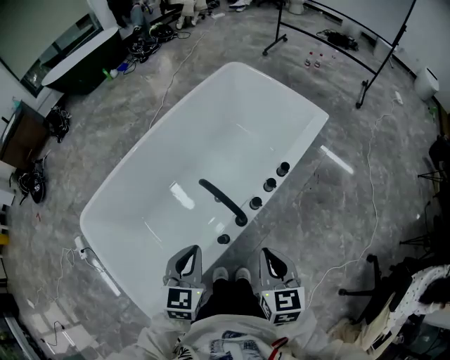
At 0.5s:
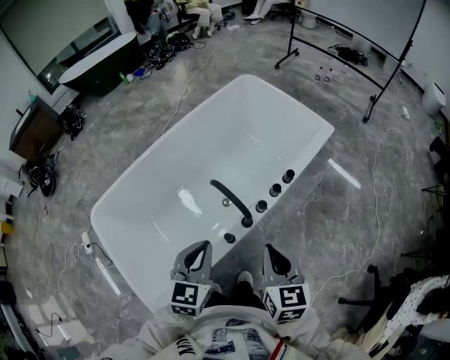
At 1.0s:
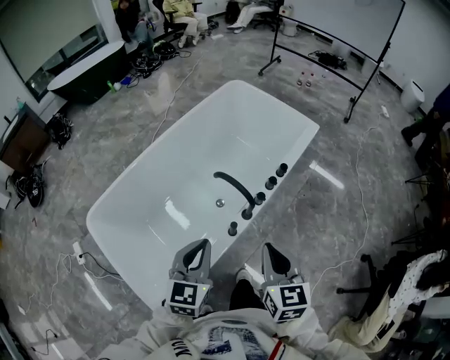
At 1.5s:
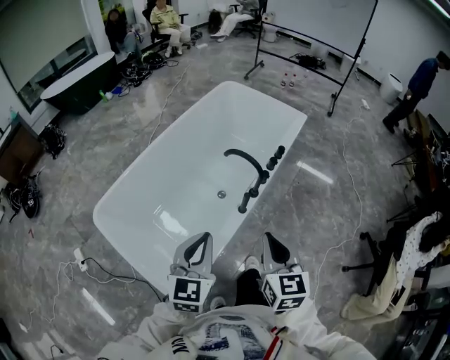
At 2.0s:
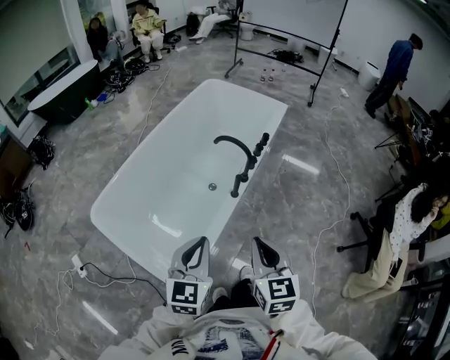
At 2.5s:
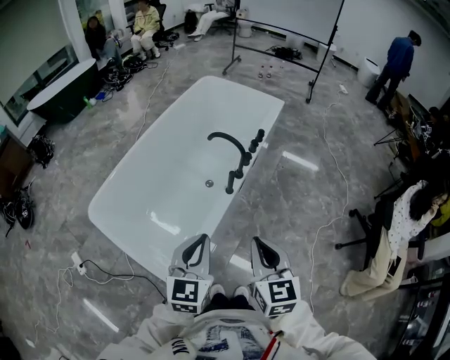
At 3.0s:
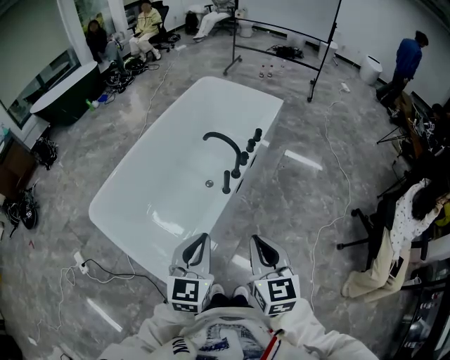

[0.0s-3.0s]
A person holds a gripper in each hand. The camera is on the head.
0.0s to 1.5s: The left gripper goes some 20 cm backward, upward and to the left, while the right gripper is displaced backward, to the left and upward by roughly 25 cm.
1.5s to 3.0s: The left gripper moves backward and to the right, about 10 cm; the right gripper is displaced backward by about 10 cm.

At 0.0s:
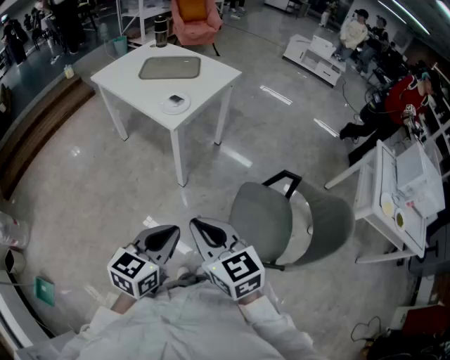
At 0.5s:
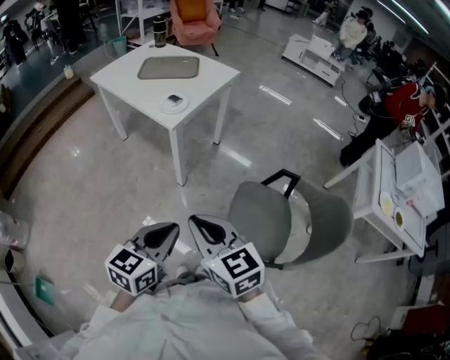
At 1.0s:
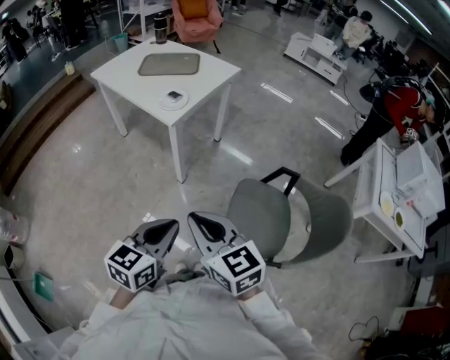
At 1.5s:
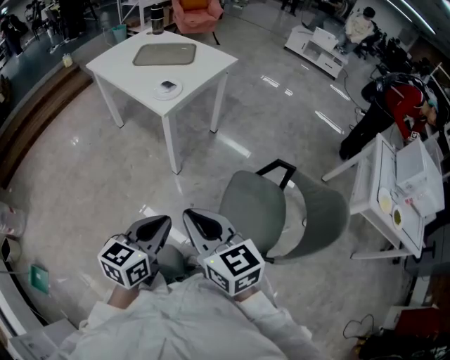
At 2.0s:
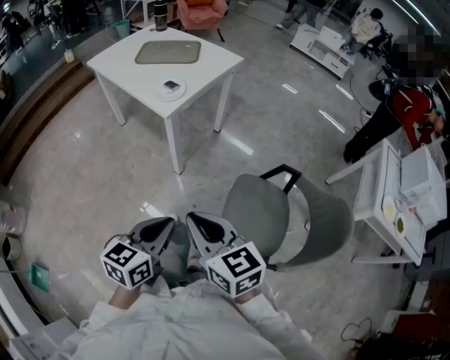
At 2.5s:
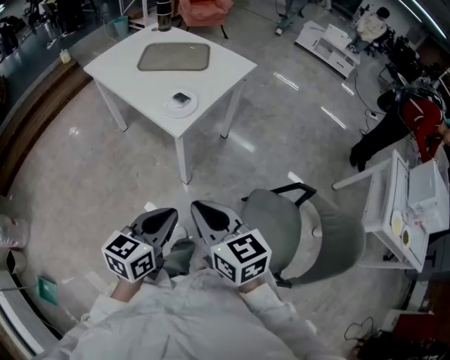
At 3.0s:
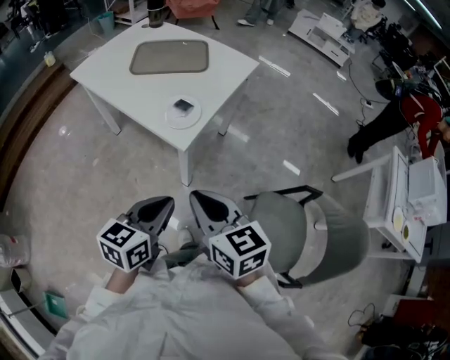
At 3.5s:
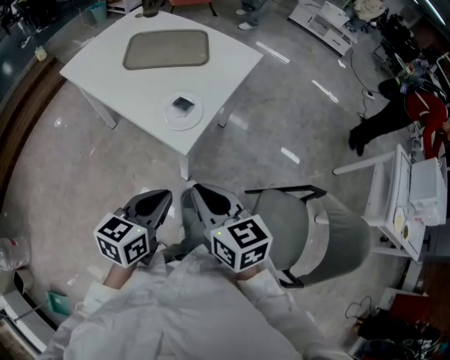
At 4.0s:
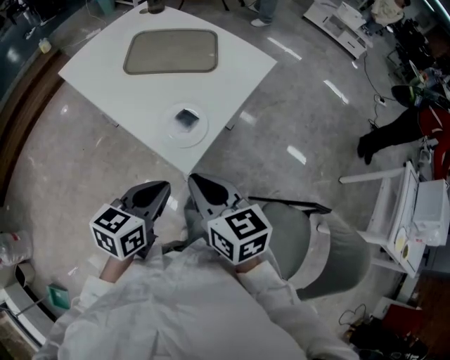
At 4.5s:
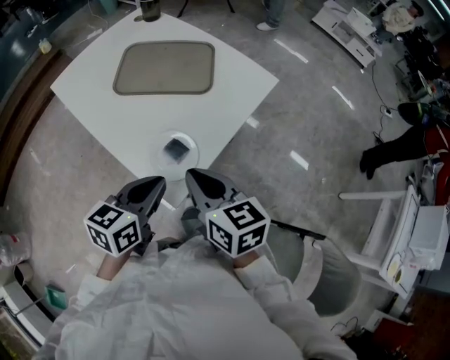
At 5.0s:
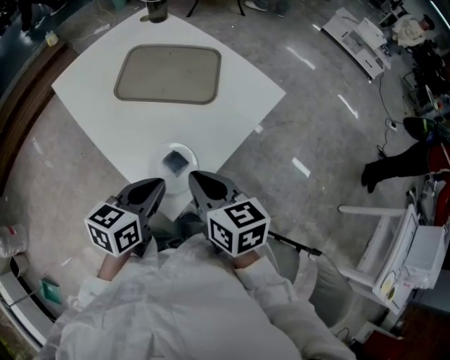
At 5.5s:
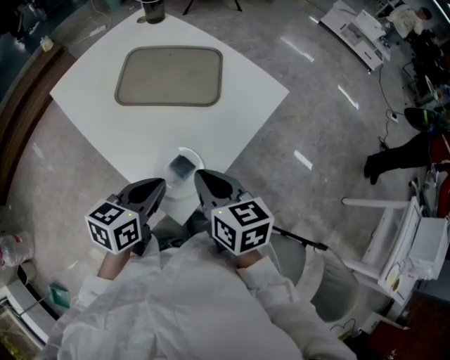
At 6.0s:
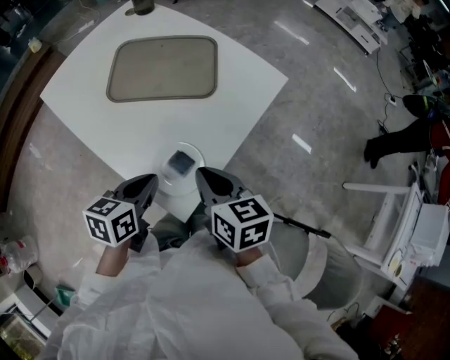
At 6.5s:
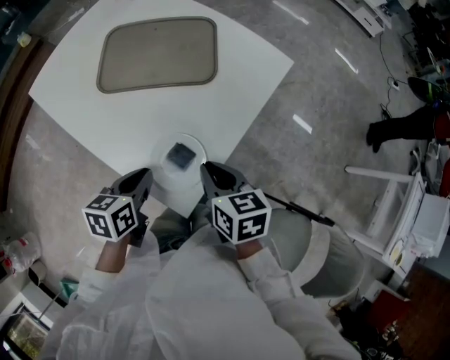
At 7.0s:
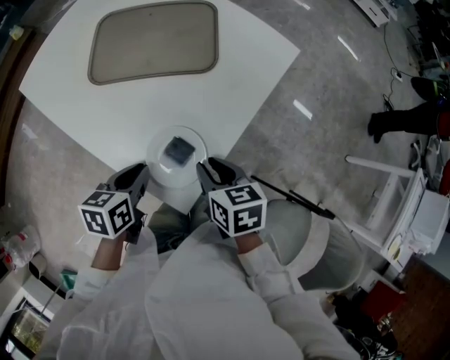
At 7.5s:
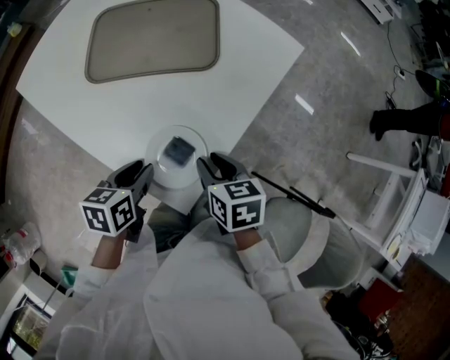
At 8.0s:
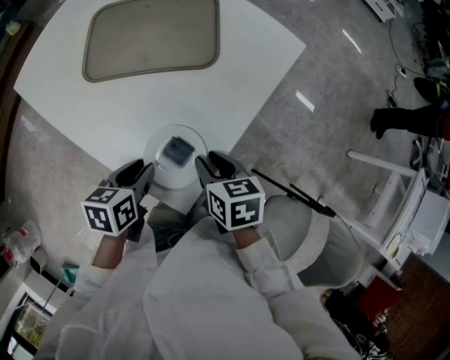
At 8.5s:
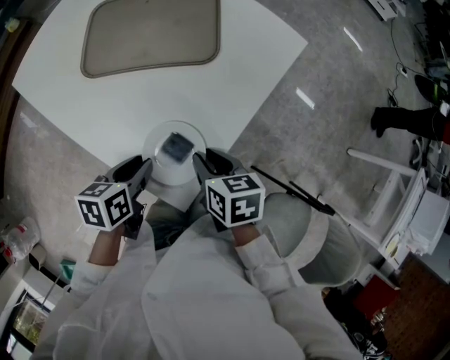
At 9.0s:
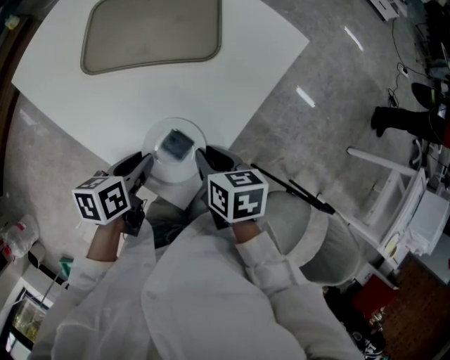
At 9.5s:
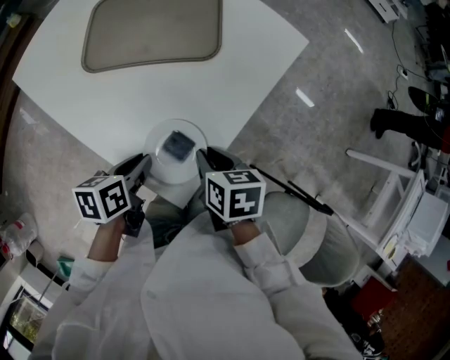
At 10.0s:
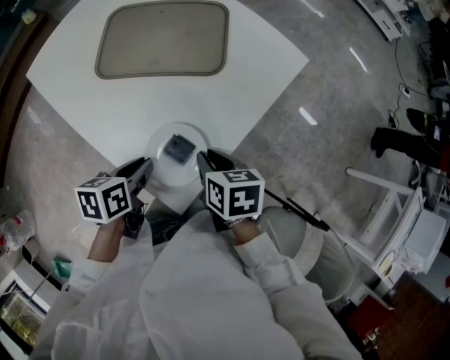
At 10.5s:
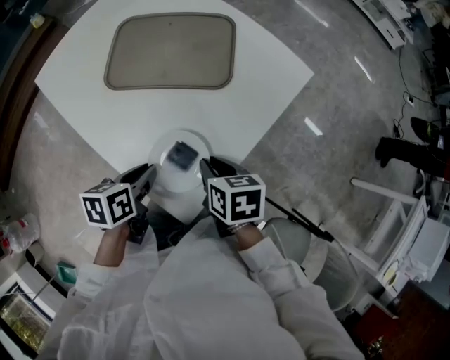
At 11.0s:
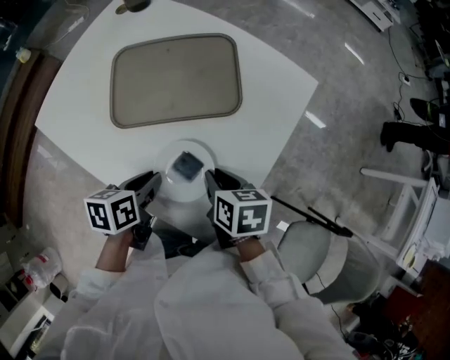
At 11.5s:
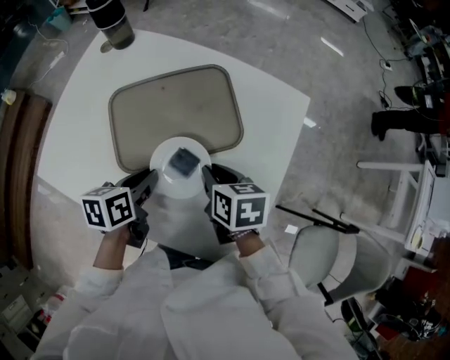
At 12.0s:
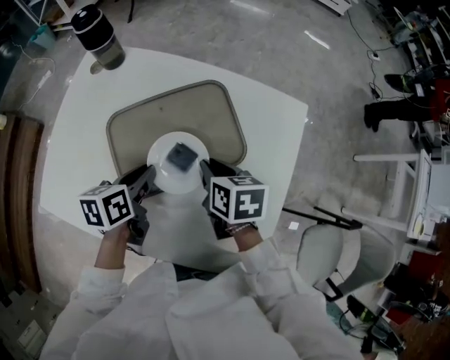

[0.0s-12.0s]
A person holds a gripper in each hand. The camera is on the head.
0.0s to 2.0s: There are only small adjustments of the grippers.
2.0s to 4.0s: Both grippers are carried forward, about 40 cm.
4.0s to 6.0s: Both grippers move forward, some 20 cm.
6.0s to 8.0s: Both grippers move downward, approximately 10 cm. The right gripper opens its fingers. The left gripper opens.
8.0s to 10.0s: The grippers make only small movements.
10.0s to 12.0s: The two grippers go some 30 cm forward and to the left. The right gripper rotates roughly 20 degrees.

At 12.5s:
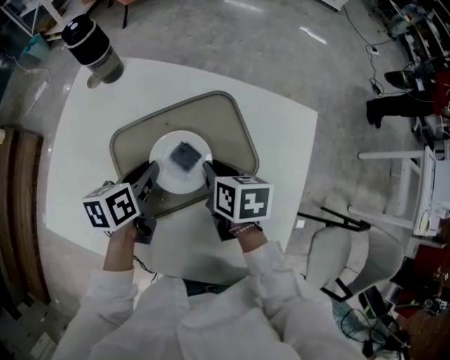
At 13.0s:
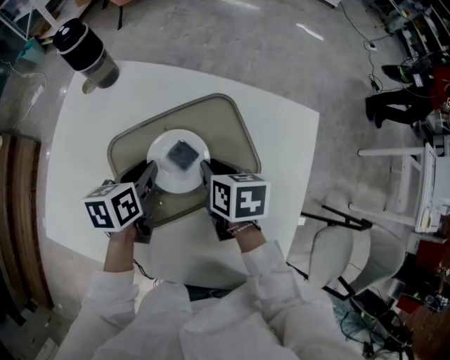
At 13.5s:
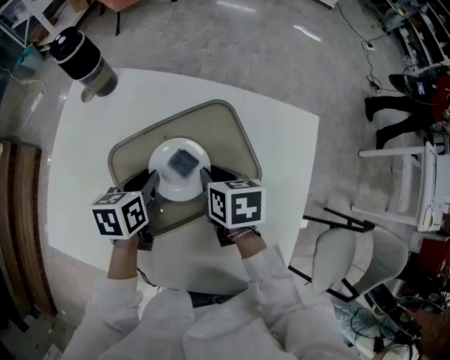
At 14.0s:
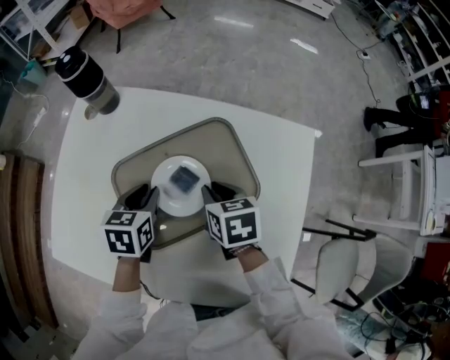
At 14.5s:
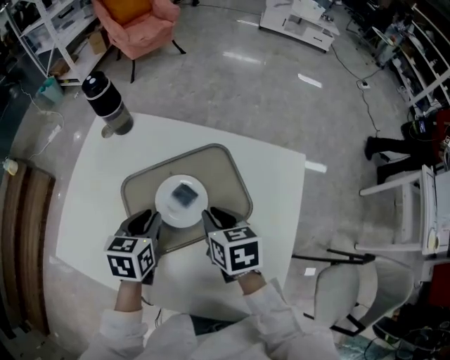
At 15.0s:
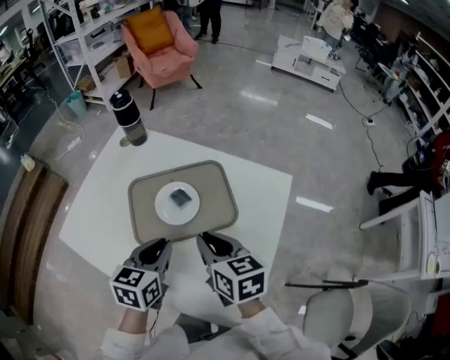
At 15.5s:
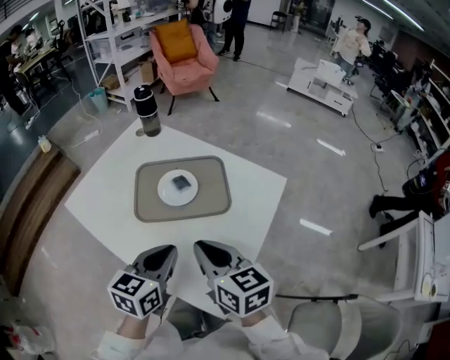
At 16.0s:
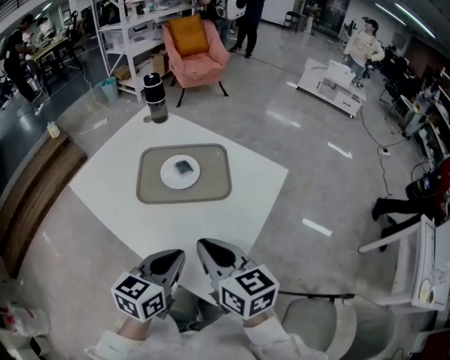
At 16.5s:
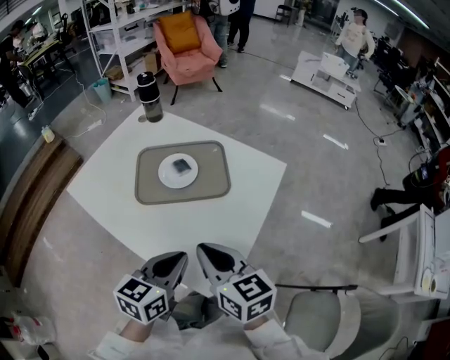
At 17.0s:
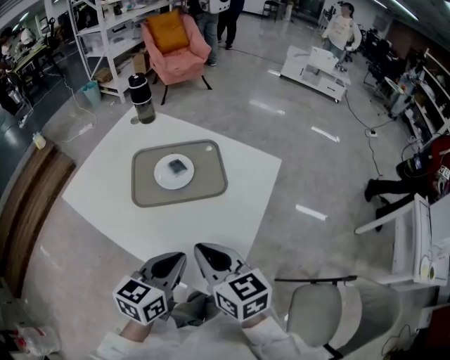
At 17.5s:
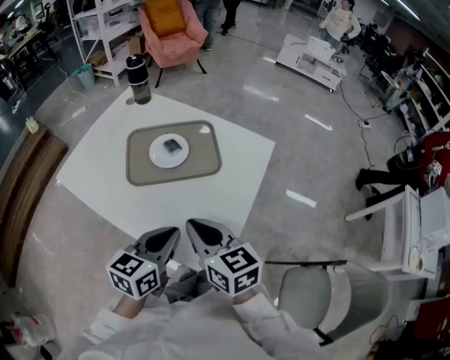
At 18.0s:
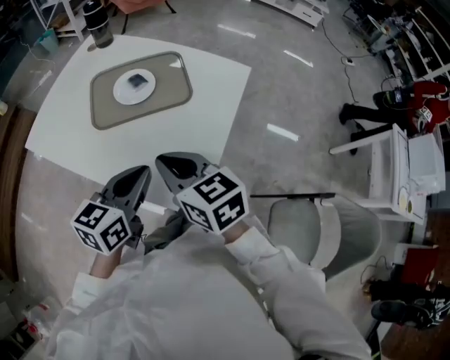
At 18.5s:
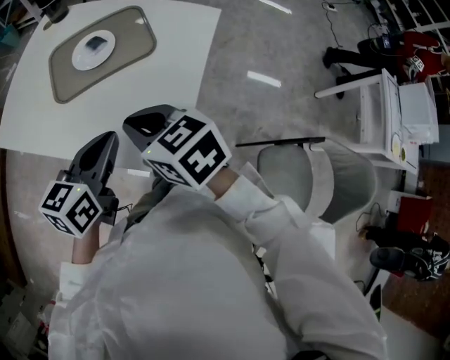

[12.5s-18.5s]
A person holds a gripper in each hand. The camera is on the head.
12.5s to 14.5s: The left gripper turns by some 30 degrees.
14.5s to 16.5s: The right gripper heads backward and upward, covering approximately 30 cm, and swivels some 30 degrees, while the left gripper shifts roughly 35 cm backward and to the right, and rotates some 20 degrees.
16.5s to 18.5s: There are only small adjustments of the grippers.

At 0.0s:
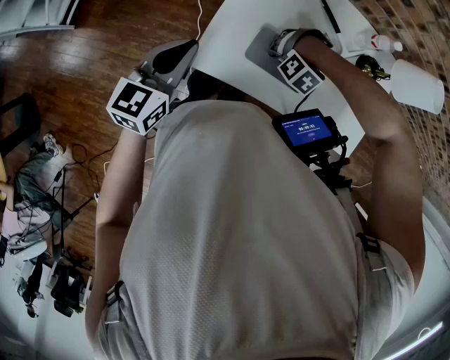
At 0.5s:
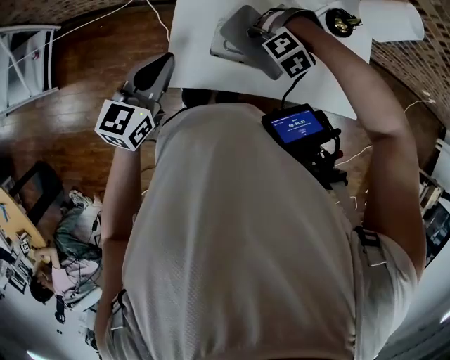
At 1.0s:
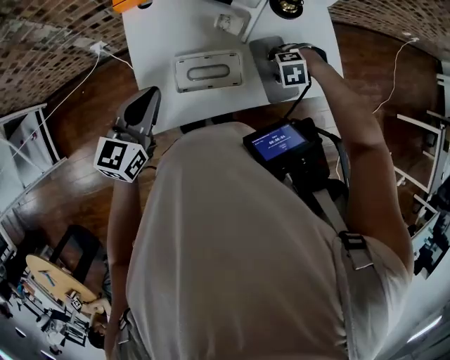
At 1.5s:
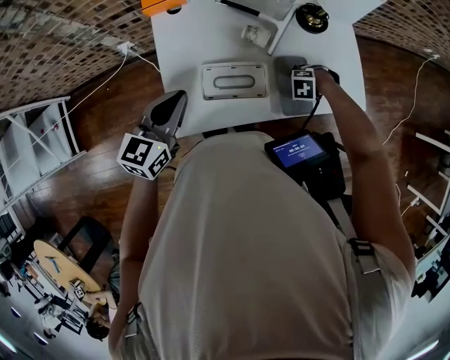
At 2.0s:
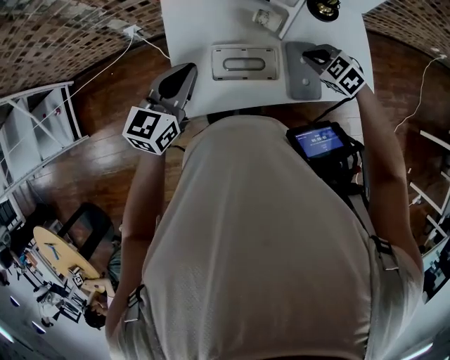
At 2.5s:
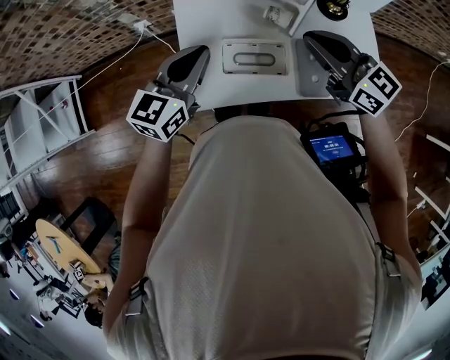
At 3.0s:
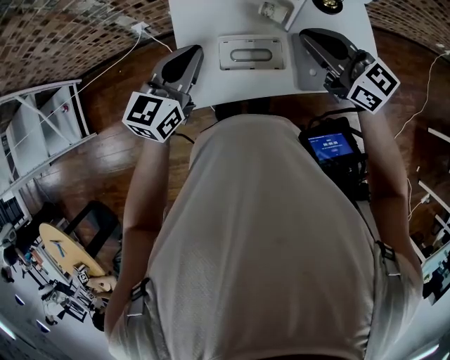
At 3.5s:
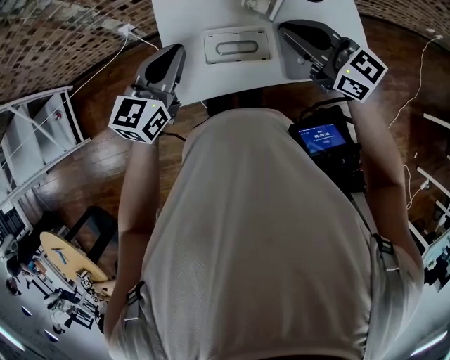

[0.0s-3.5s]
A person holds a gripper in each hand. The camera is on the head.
0.0s to 2.0s: The left gripper ends up roughly 15 cm from where it was, and turns by some 20 degrees. The right gripper moves up and down over some 15 cm, changing direction 2 times, twists about 110 degrees clockwise, seen from behind, and closes its fingers.
2.0s to 3.5s: The right gripper moves upward and to the left, approximately 25 cm, and angles its fingers upward, by approximately 50 degrees.

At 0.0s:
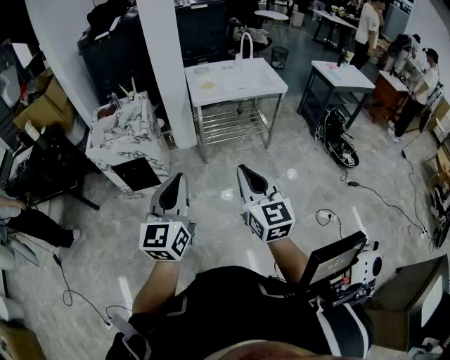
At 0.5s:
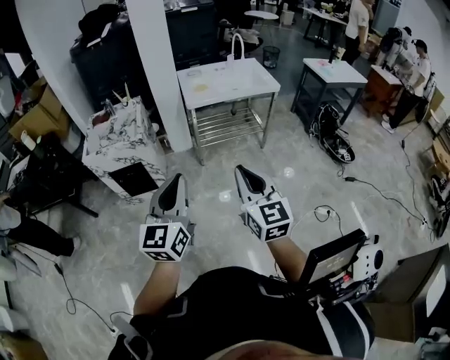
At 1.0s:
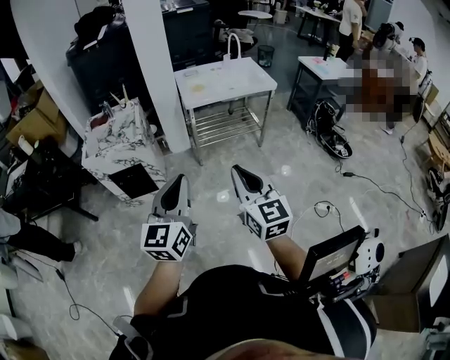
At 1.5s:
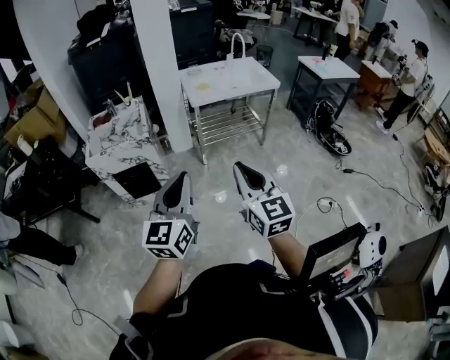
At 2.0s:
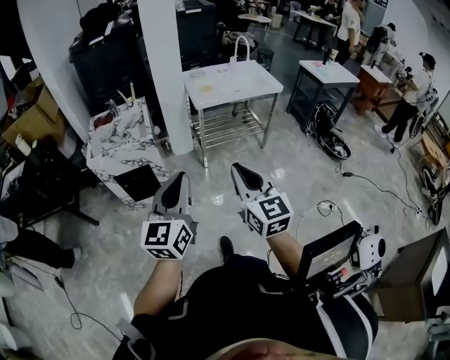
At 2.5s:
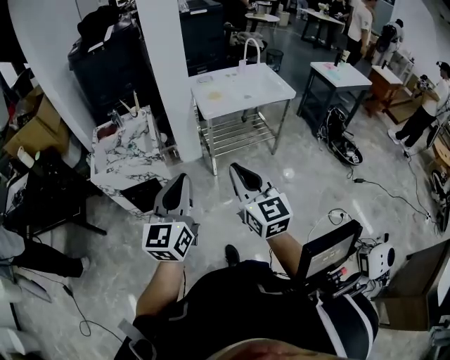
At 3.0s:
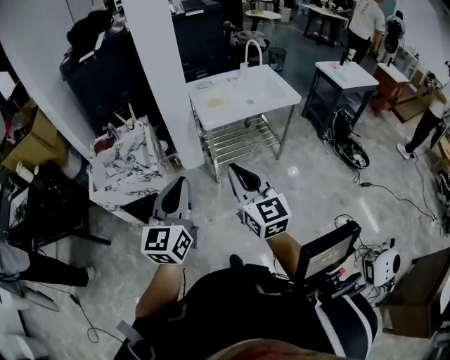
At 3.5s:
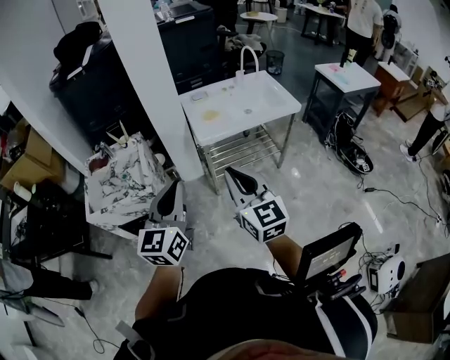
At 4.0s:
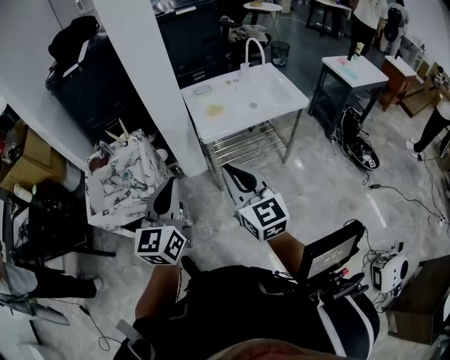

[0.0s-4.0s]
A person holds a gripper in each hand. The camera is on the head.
0.0s to 2.0s: Both grippers move to the left, about 15 cm.
2.0s to 4.0s: Both grippers move forward, some 35 cm.
